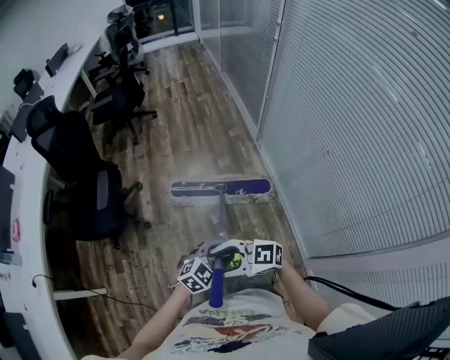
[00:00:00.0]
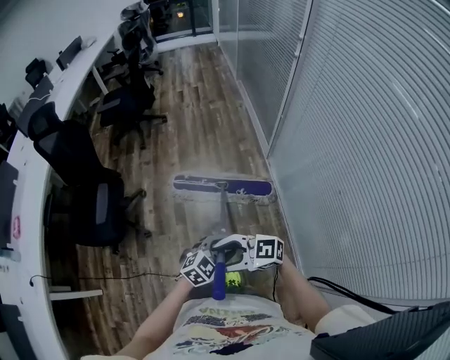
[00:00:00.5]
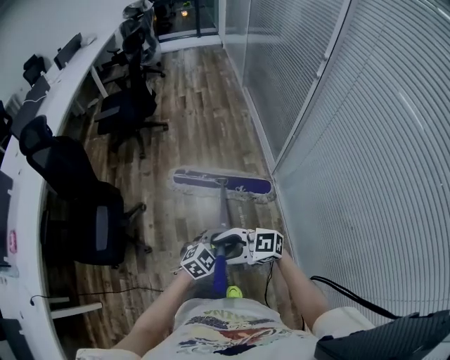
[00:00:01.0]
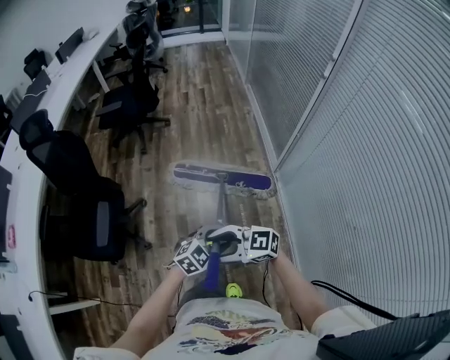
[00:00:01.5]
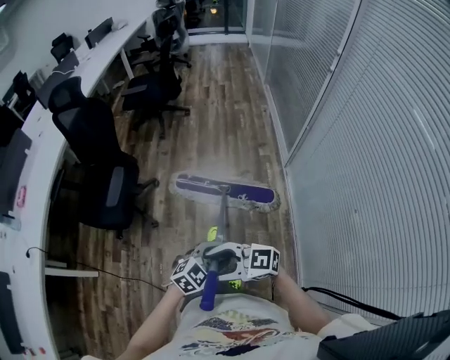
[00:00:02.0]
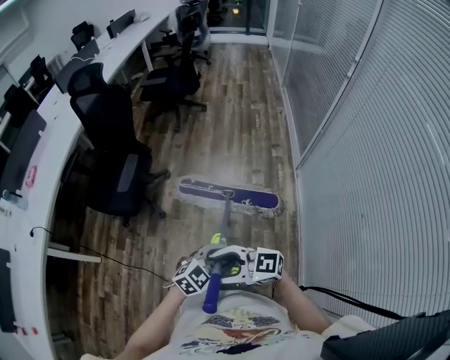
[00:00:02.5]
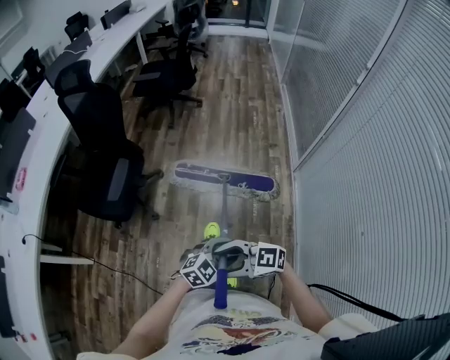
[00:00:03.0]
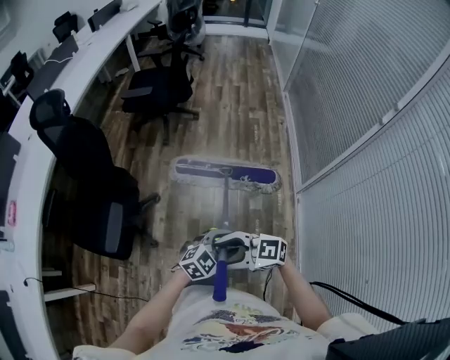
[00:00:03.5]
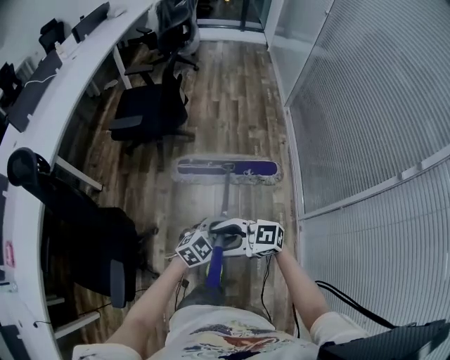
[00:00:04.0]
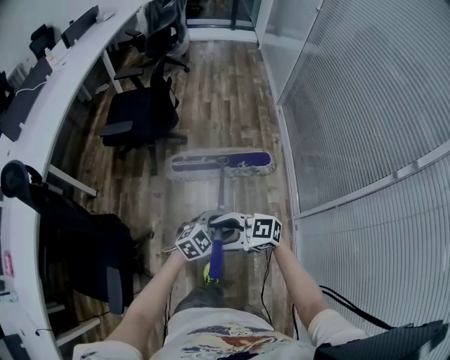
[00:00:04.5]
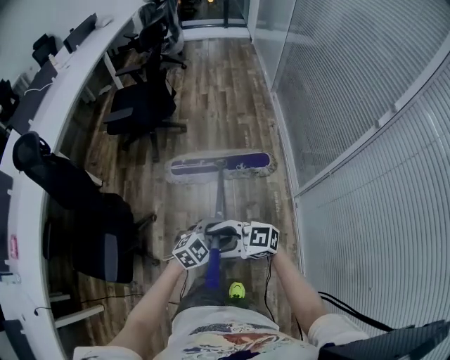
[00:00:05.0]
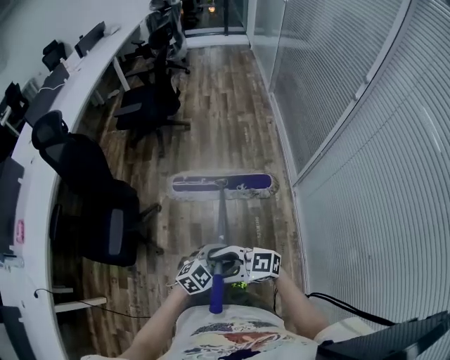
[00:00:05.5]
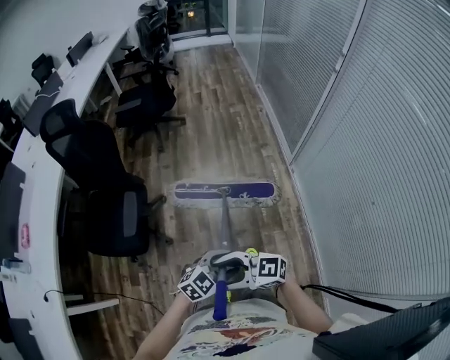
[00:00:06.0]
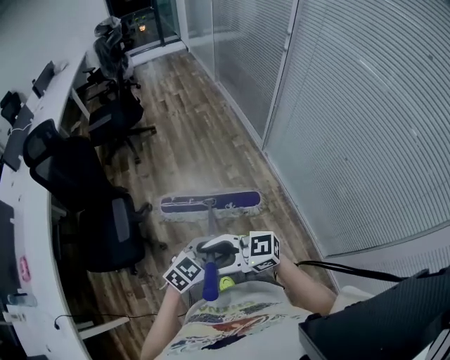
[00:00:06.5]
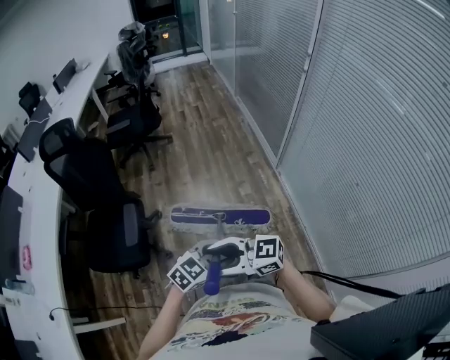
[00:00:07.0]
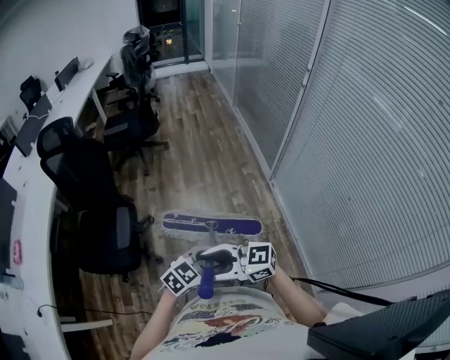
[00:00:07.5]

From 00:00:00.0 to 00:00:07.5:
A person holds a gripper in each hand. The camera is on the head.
From 00:00:02.0 to 00:00:04.0: Both grippers are carried about 70 cm.
From 00:00:04.0 to 00:00:05.5: Both grippers are carried approximately 50 cm.
From 00:00:05.5 to 00:00:07.5: The left gripper shifts by approximately 25 cm. The right gripper changes place by approximately 25 cm.

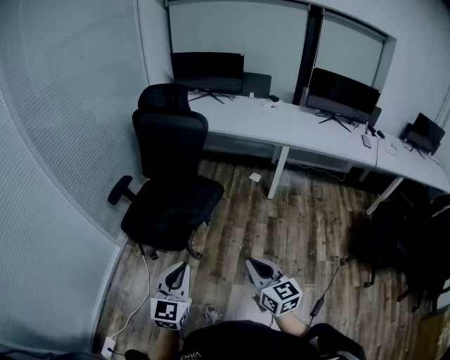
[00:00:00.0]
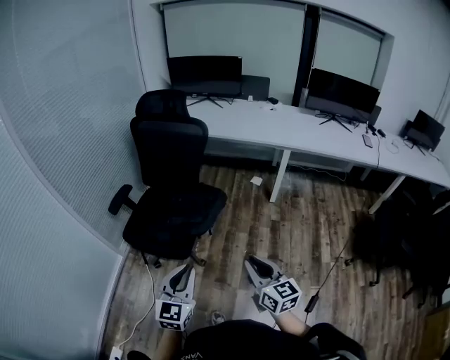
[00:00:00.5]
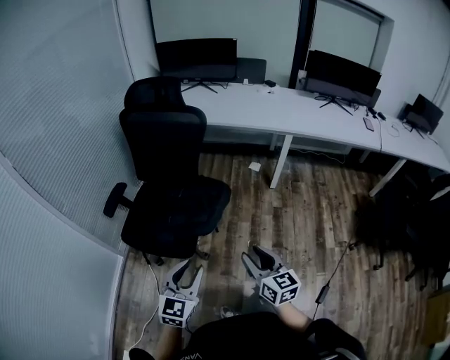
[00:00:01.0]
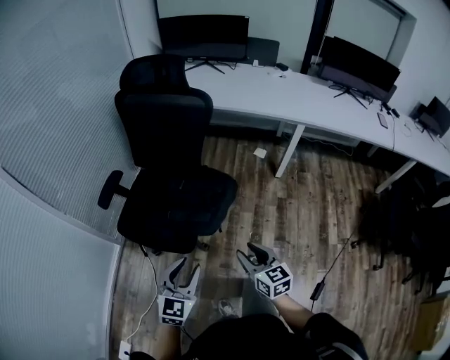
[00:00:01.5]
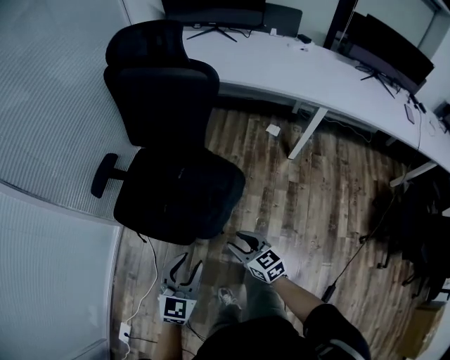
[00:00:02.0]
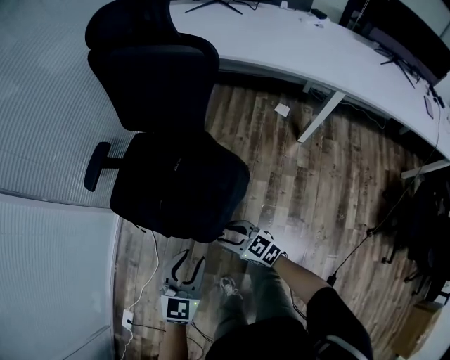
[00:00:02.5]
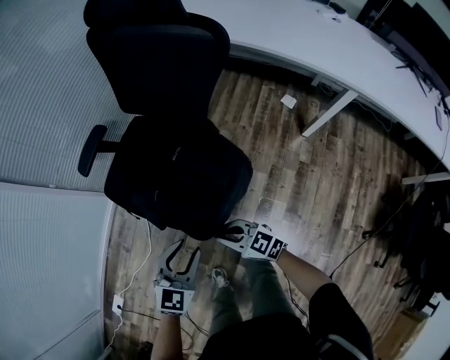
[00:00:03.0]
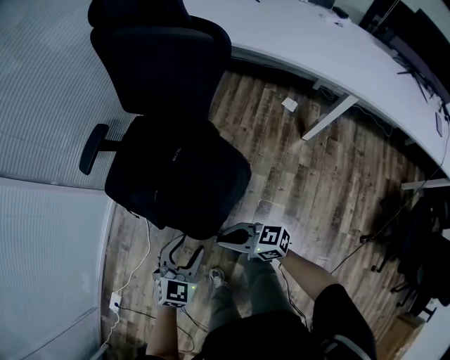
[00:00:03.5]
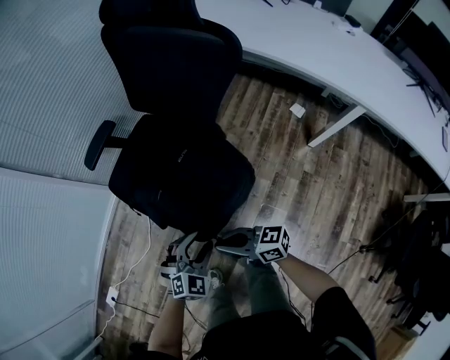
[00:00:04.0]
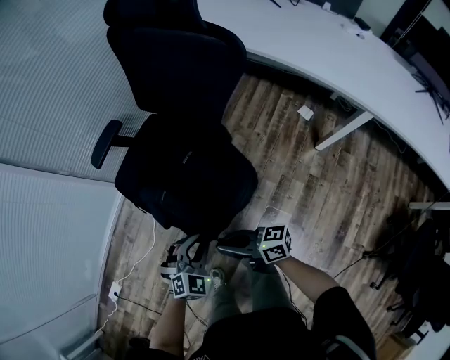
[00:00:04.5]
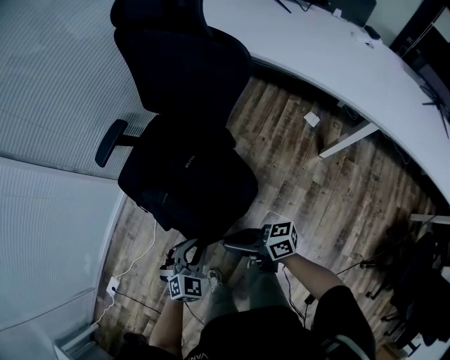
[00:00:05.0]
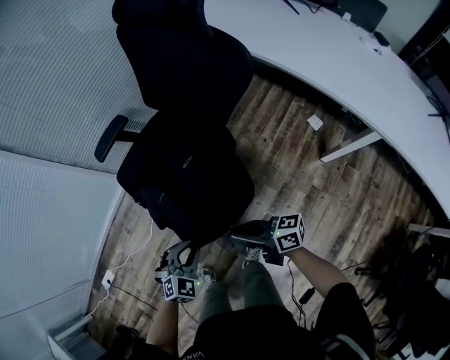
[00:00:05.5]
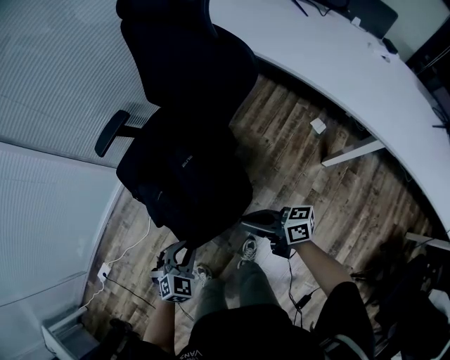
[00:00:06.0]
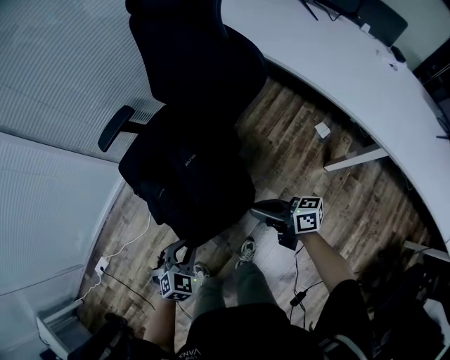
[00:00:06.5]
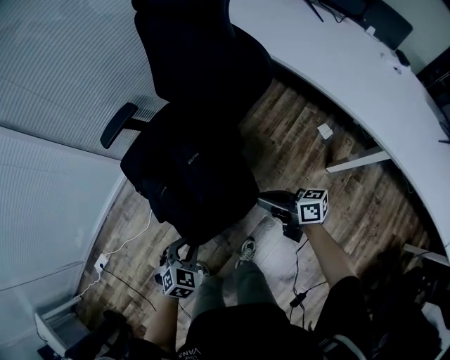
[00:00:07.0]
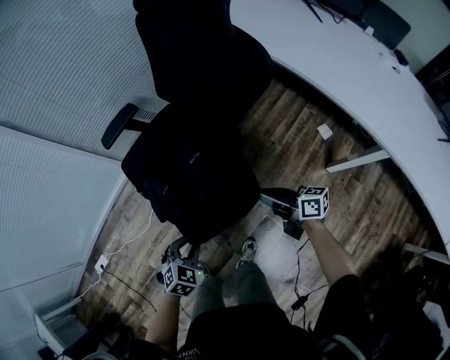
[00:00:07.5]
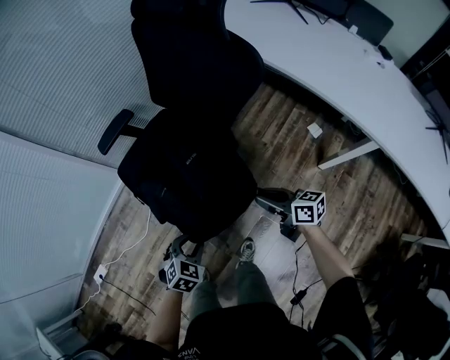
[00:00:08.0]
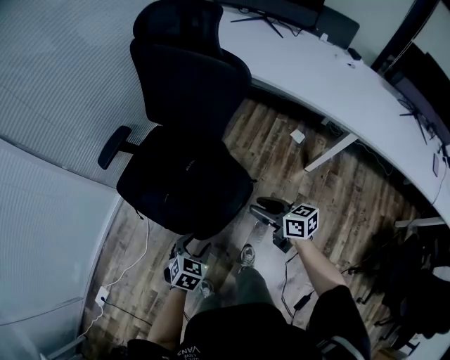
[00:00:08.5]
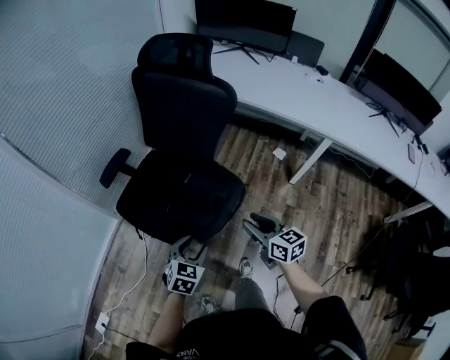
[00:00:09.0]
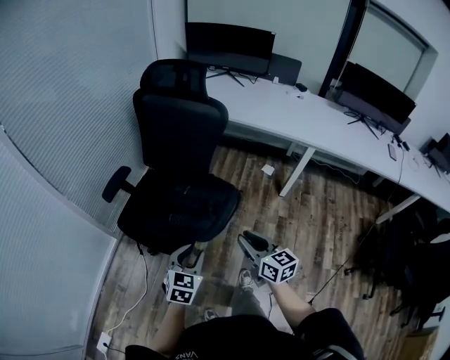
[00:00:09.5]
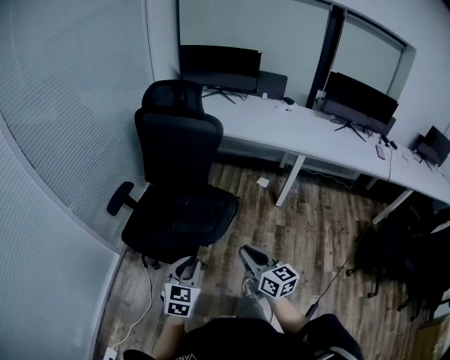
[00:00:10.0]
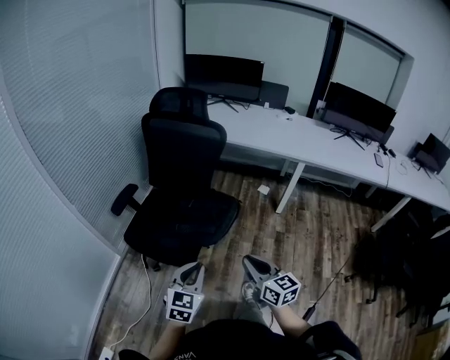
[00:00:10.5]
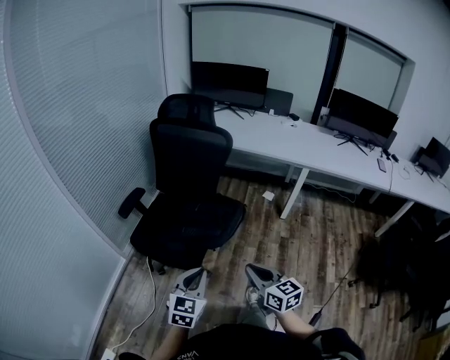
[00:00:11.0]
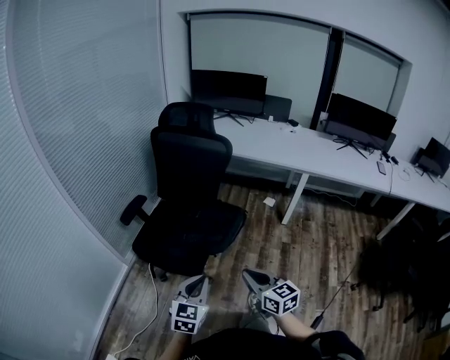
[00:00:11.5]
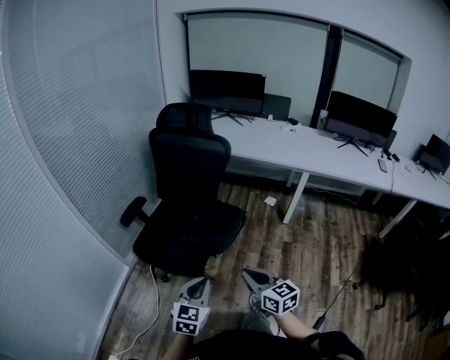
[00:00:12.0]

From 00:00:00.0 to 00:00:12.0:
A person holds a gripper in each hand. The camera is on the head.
From 00:00:00.0 to 00:00:02.0: Both grippers travel together forward and downward, approximately 35 cm. The left gripper opens; the right gripper swivels about 20 degrees, and opens its fingers.
From 00:00:02.0 to 00:00:04.0: The right gripper turns by approximately 50 degrees, and closes; the left gripper moves downward, about 15 cm, and turns by roughly 30 degrees.
From 00:00:04.0 to 00:00:06.0: The left gripper closes its fingers. Meanwhile the right gripper is displaced to the right by about 15 cm.
From 00:00:06.0 to 00:00:08.0: The right gripper travels to the right by roughly 5 cm, and changes its angle by roughly 20 degrees.
From 00:00:08.0 to 00:00:10.0: The right gripper ends up about 40 cm from where it was, swivels some 50 degrees, and opens and closes again, while the left gripper shifts about 25 cm upward, and tilts its fingers approximately 30 degrees upward.
From 00:00:10.0 to 00:00:12.0: The grippers both shift backward by roughly 10 cm.

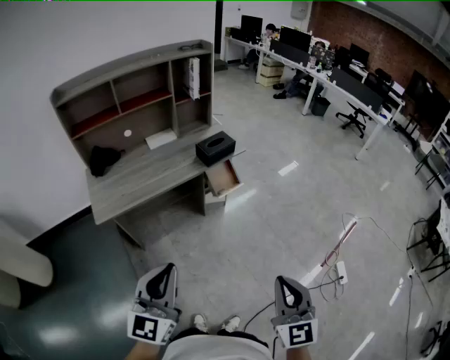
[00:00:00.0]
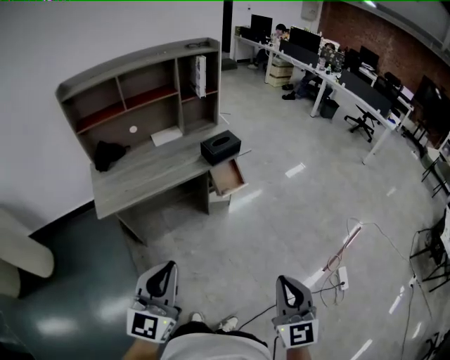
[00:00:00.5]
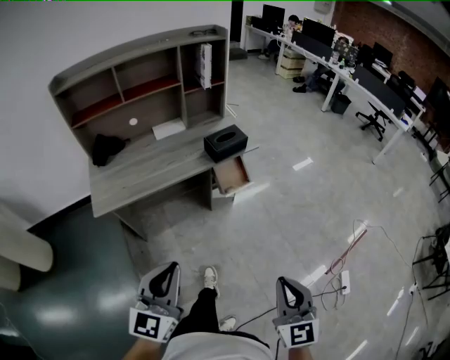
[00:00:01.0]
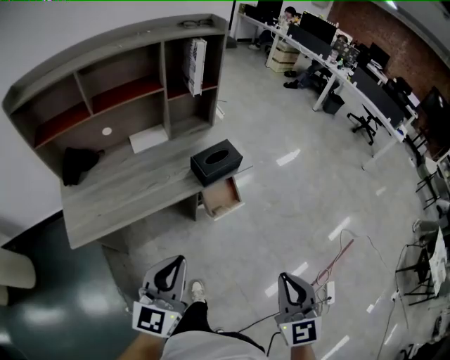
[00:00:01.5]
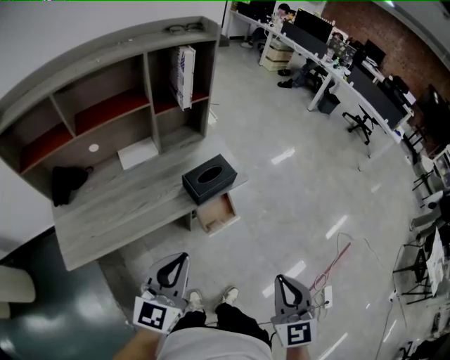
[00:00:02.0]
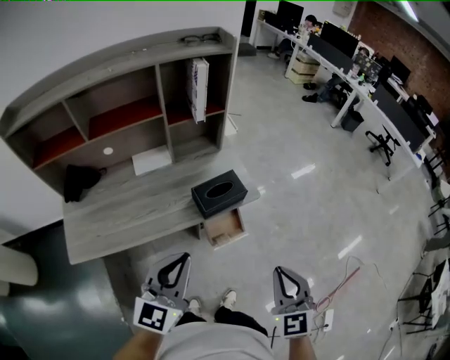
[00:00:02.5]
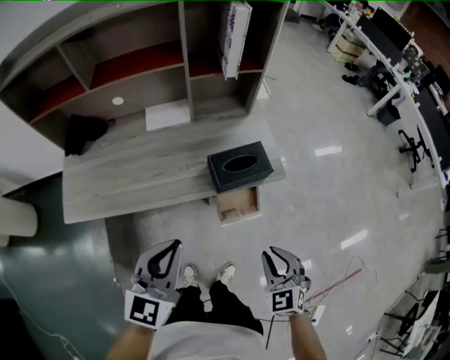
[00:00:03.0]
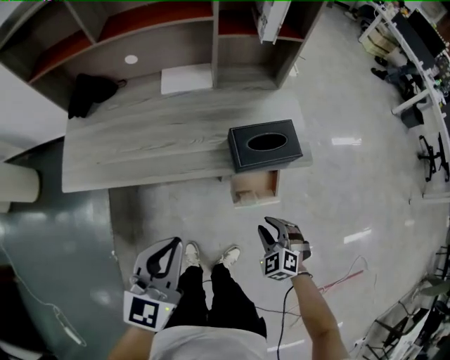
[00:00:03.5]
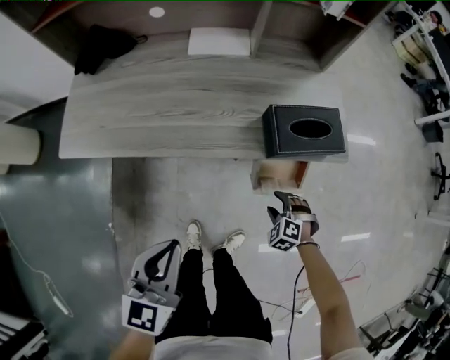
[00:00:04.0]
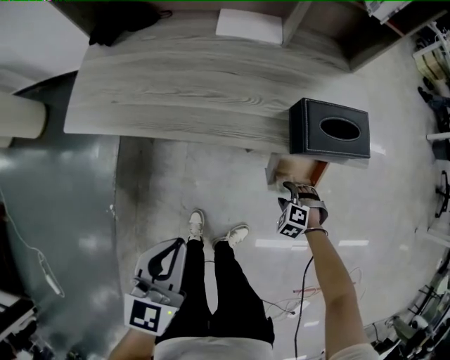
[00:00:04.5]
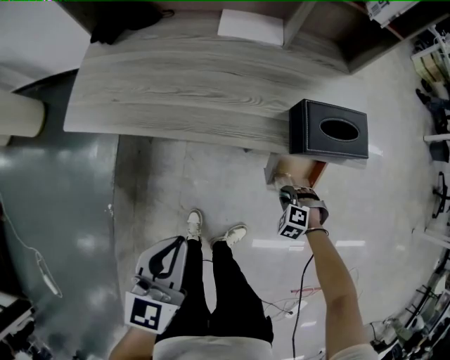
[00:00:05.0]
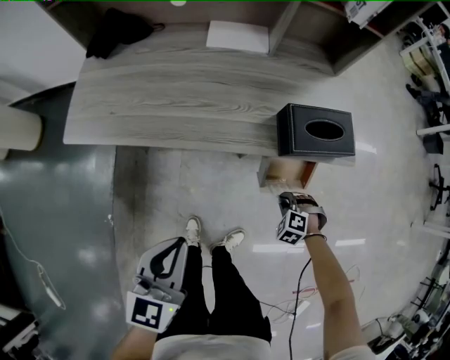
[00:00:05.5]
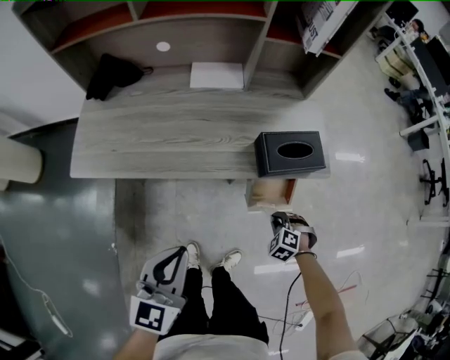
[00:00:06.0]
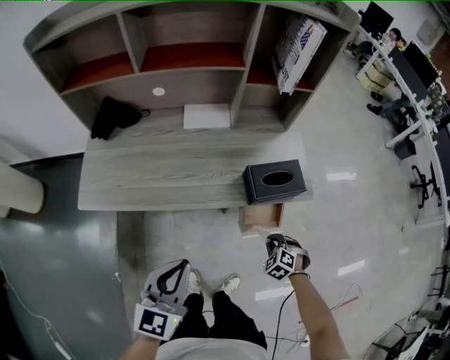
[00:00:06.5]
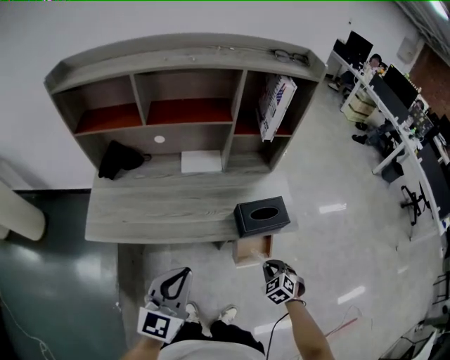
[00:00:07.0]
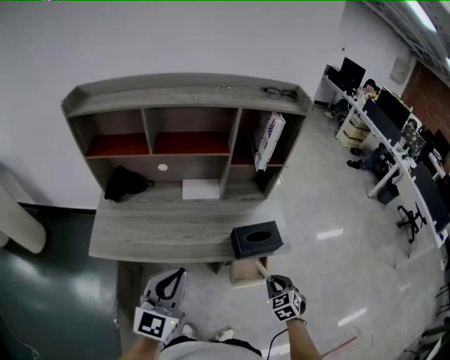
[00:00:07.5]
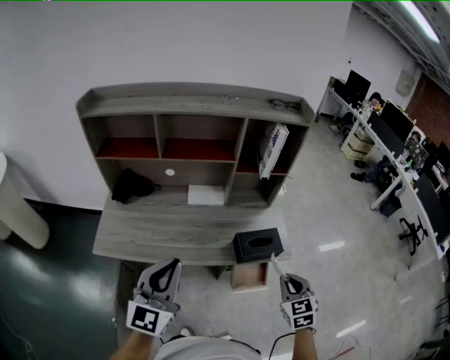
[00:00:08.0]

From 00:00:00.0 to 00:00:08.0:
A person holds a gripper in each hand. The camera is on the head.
From 00:00:00.0 to 00:00:02.0: Both grippers move forward, approximately 40 cm.
From 00:00:02.0 to 00:00:04.0: The right gripper travels downward by roughly 50 cm, points its fingers about 50 degrees further downward, and opens. The left gripper heads downward, covering some 20 cm, and rotates approximately 40 degrees.
From 00:00:04.0 to 00:00:06.0: The right gripper shifts roughly 5 cm upward, and closes up.
From 00:00:06.0 to 00:00:08.0: The right gripper goes some 40 cm upward, and tilts its fingers some 40 degrees upward; the left gripper shifts about 25 cm upward, and swivels about 30 degrees.
